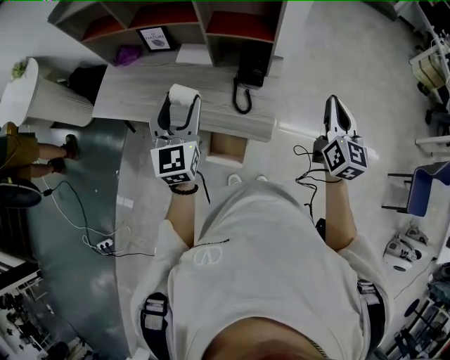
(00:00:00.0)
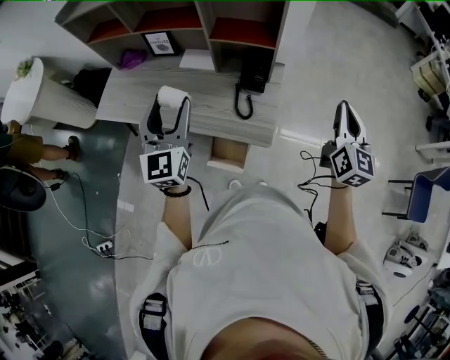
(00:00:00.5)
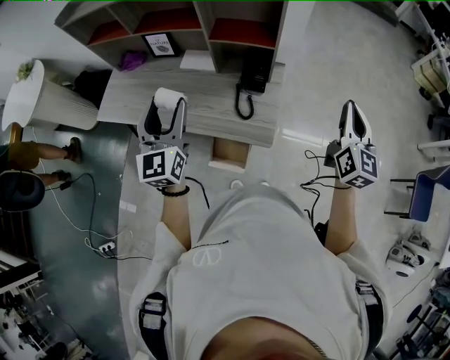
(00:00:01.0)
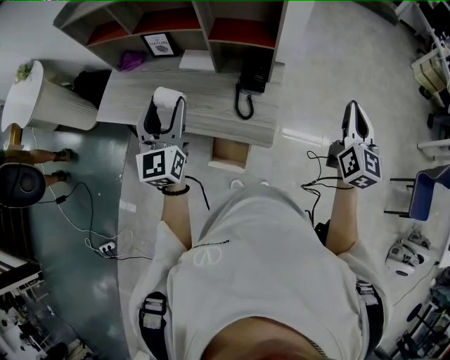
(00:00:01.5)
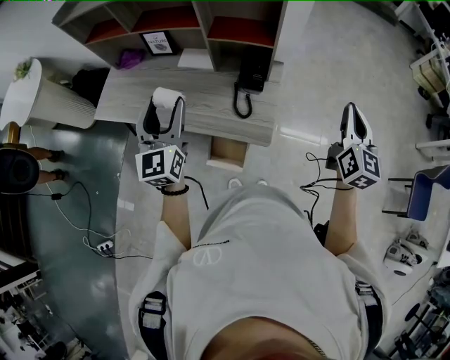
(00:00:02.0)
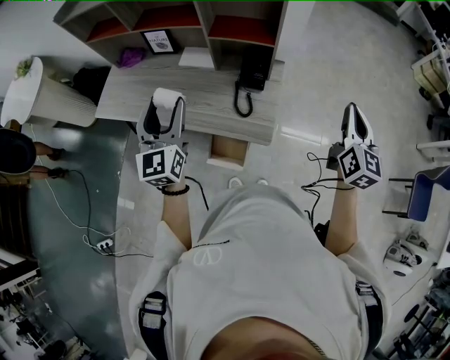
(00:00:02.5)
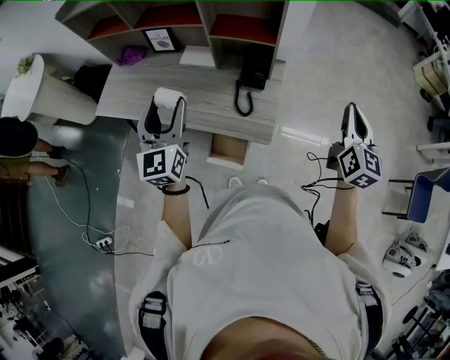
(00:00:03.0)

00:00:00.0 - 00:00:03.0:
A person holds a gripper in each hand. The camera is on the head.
00:00:00.0 - 00:00:01.5: The right gripper changes place by approximately 5 cm.
00:00:01.5 - 00:00:03.0: The grippers stay close to where they were, moving slightly.

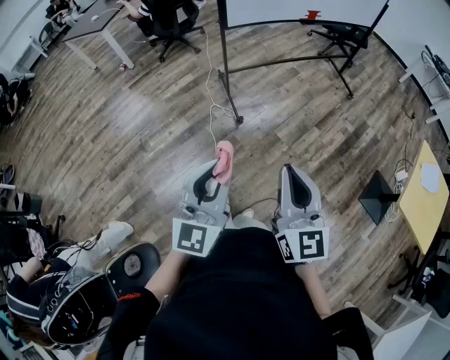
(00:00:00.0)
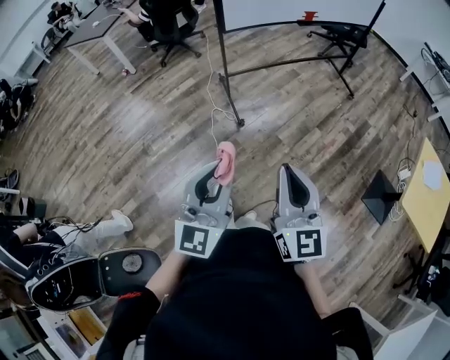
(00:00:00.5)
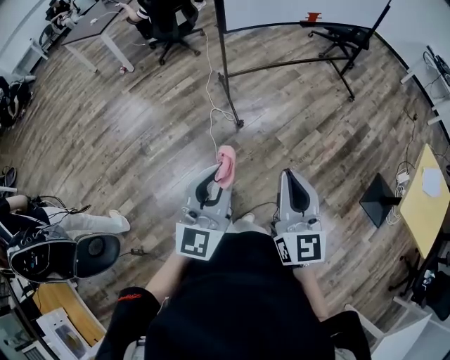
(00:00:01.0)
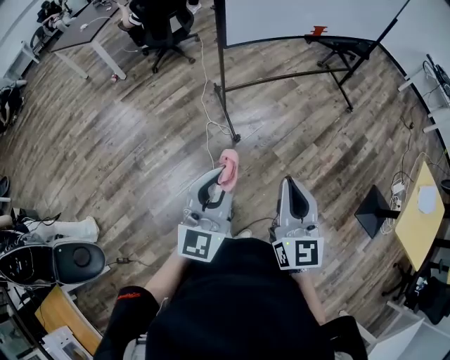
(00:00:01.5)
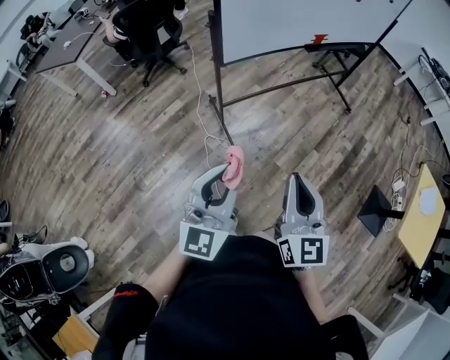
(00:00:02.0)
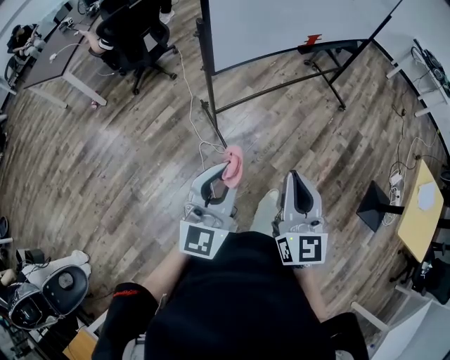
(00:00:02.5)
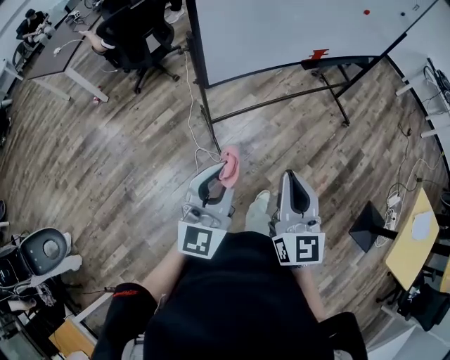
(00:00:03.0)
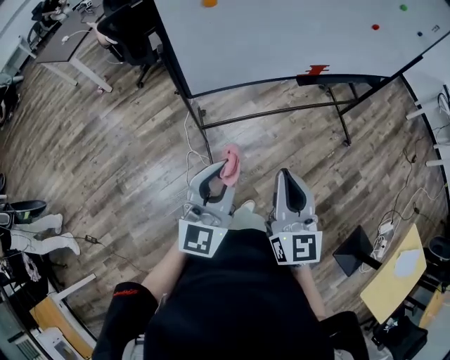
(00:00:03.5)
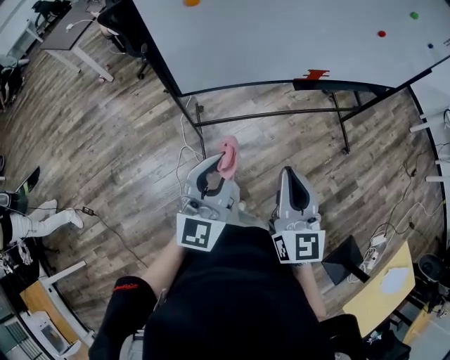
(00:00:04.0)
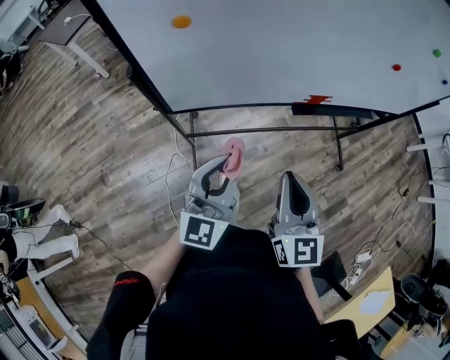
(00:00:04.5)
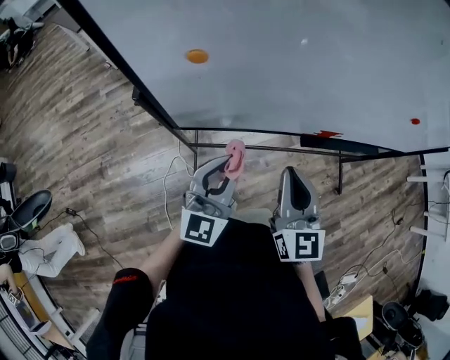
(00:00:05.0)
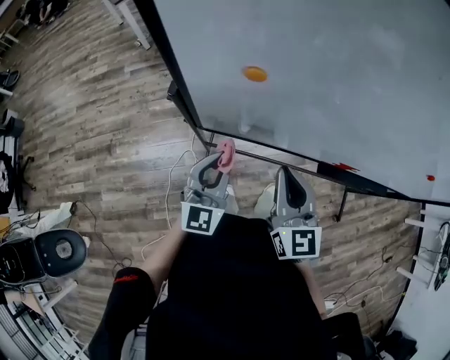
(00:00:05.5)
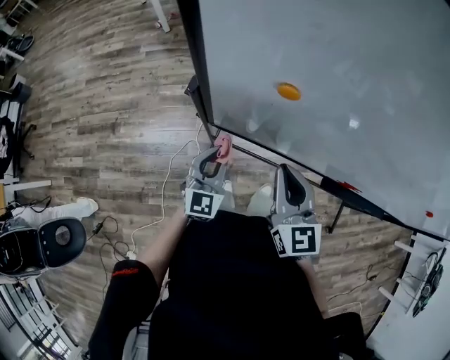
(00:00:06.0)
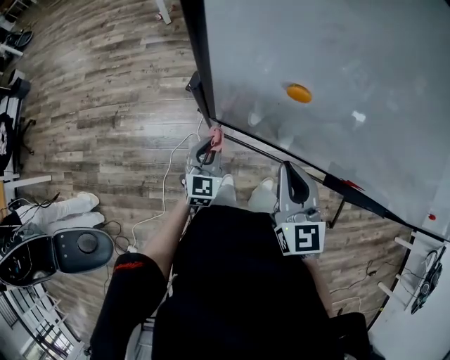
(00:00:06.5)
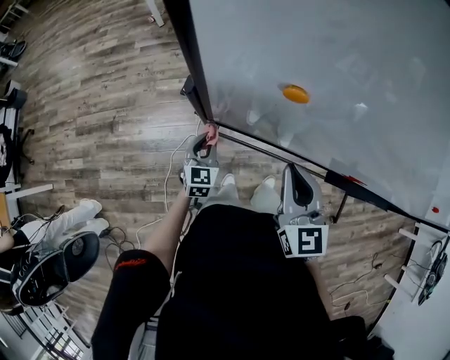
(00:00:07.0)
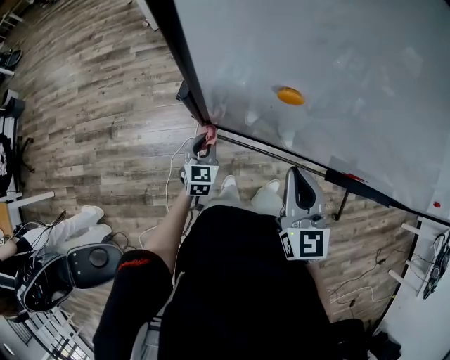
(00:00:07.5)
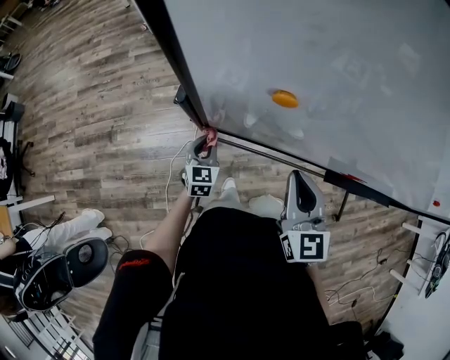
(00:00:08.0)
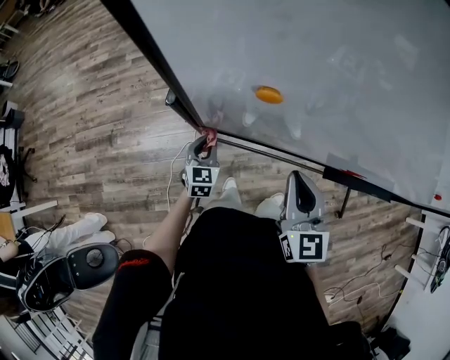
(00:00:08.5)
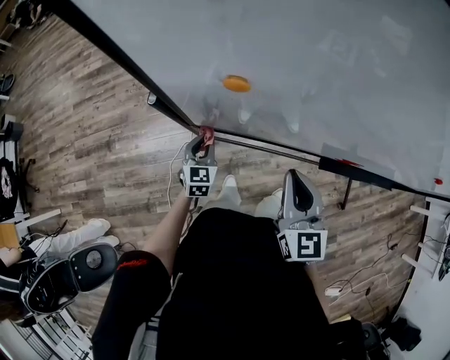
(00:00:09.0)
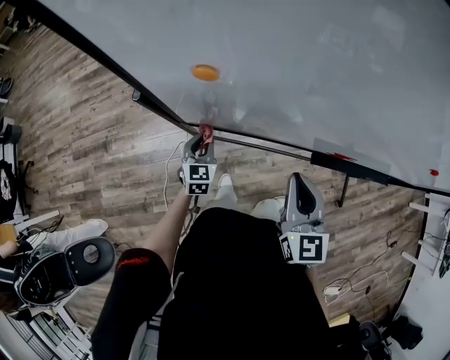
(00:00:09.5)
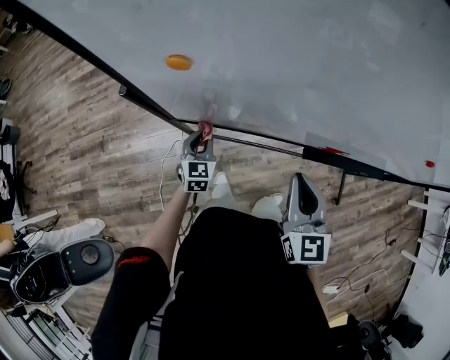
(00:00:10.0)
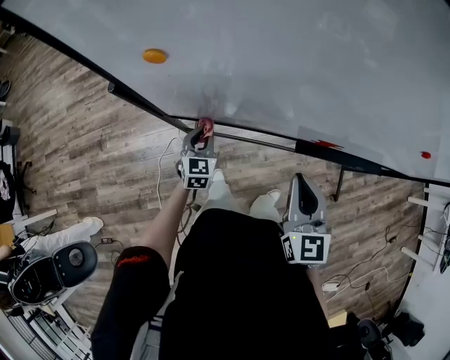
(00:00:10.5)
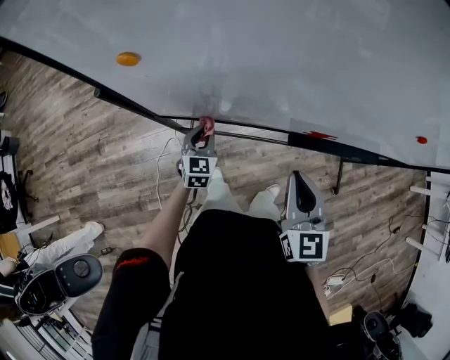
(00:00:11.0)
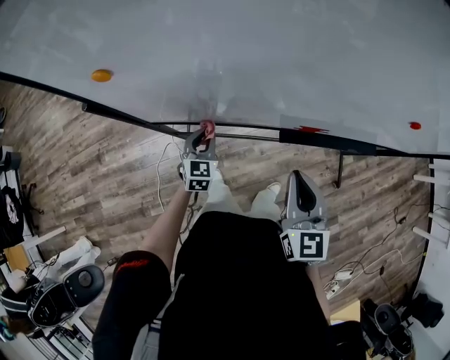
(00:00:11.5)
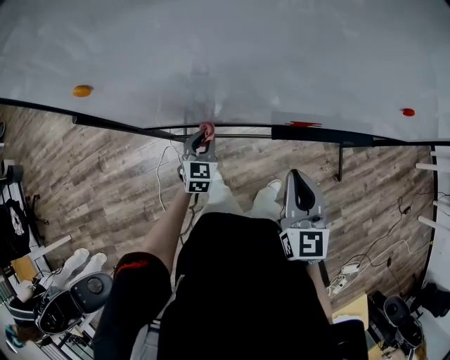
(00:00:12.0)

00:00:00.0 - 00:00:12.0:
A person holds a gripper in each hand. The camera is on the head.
00:00:00.0 - 00:00:02.0: The two grippers go about 30 cm forward.
00:00:02.0 - 00:00:04.0: Both grippers move forward and to the right, roughly 35 cm.
00:00:04.0 - 00:00:06.0: The left gripper moves approximately 30 cm, and turns by roughly 40 degrees, while the right gripper shifts by roughly 30 cm, and swivels some 40 degrees.
00:00:06.0 - 00:00:08.0: The left gripper travels downward by roughly 15 cm.
00:00:08.0 - 00:00:10.0: The left gripper heads to the right, covering approximately 10 cm. Meanwhile the right gripper heads to the right and backward, covering approximately 15 cm.
00:00:10.0 - 00:00:12.0: Both grippers move to the right, some 15 cm.

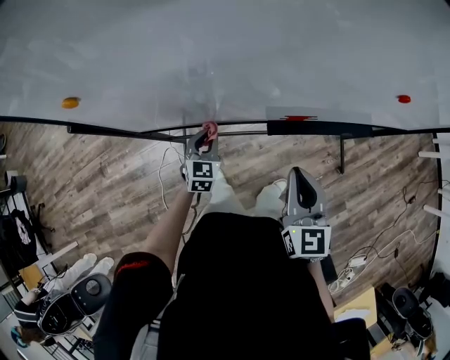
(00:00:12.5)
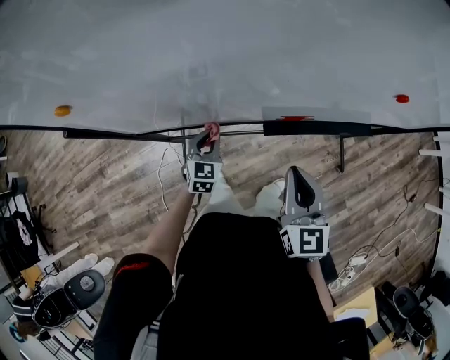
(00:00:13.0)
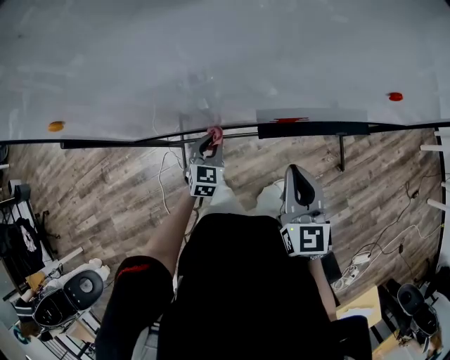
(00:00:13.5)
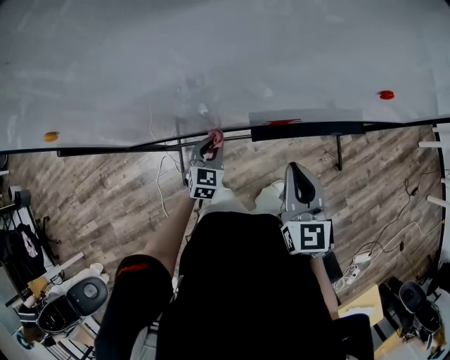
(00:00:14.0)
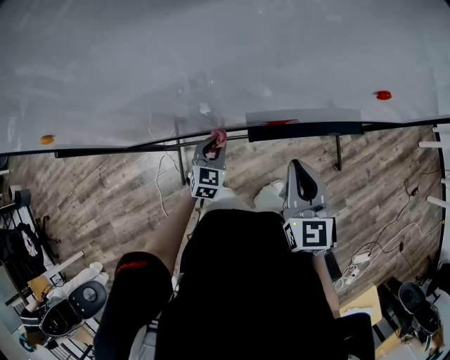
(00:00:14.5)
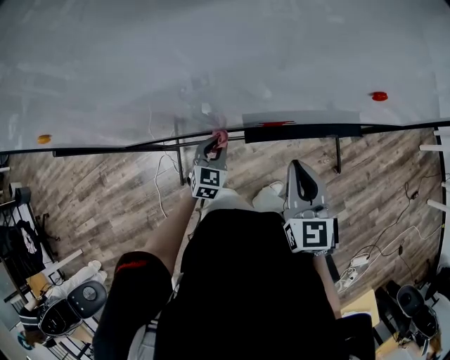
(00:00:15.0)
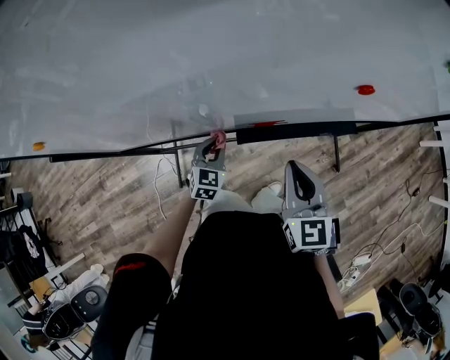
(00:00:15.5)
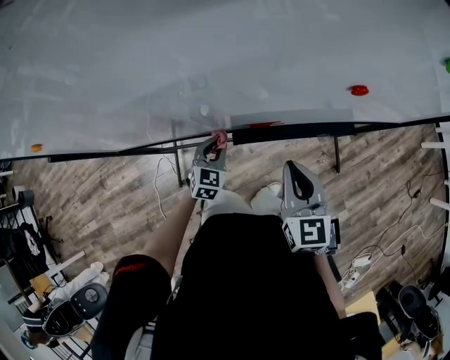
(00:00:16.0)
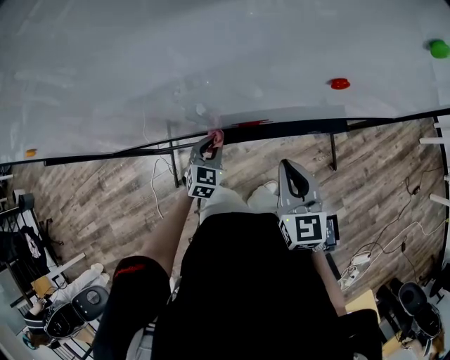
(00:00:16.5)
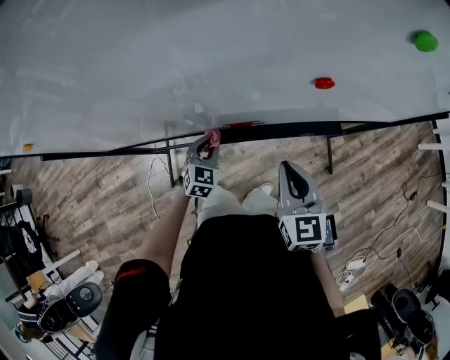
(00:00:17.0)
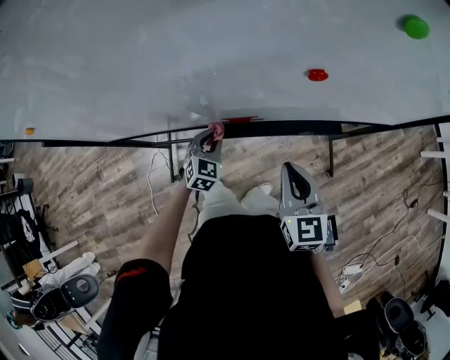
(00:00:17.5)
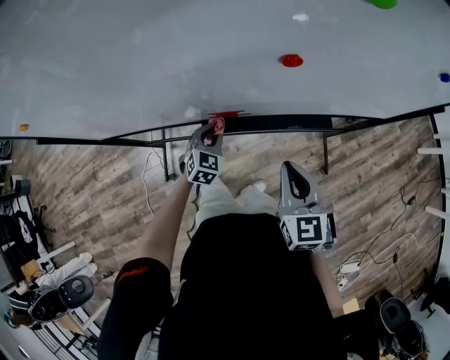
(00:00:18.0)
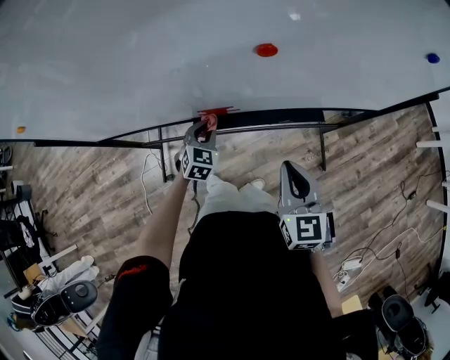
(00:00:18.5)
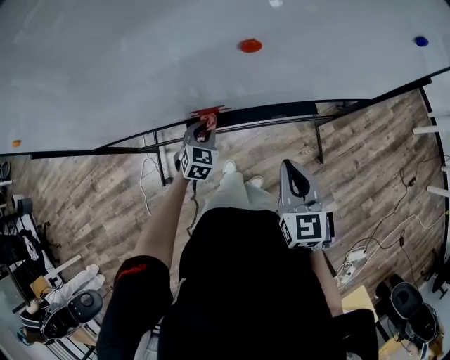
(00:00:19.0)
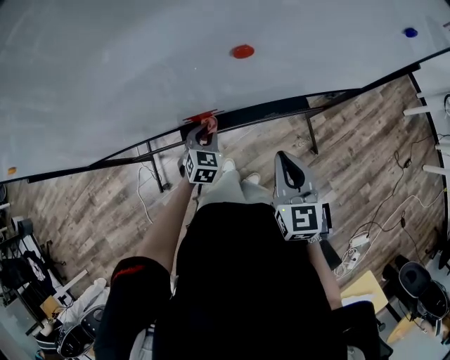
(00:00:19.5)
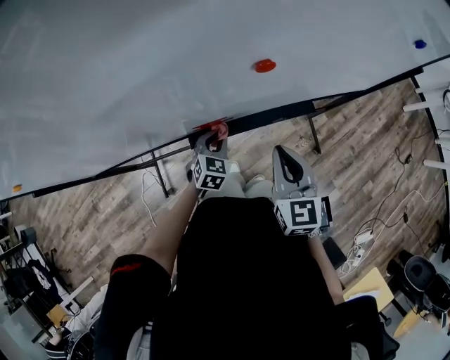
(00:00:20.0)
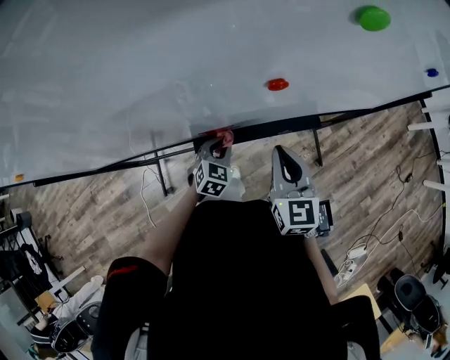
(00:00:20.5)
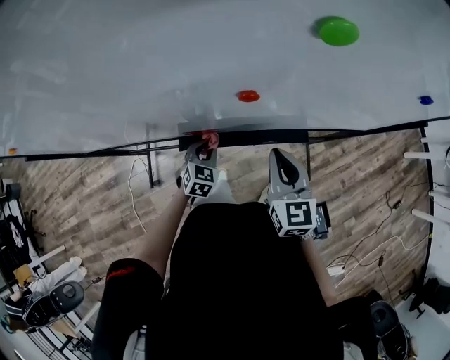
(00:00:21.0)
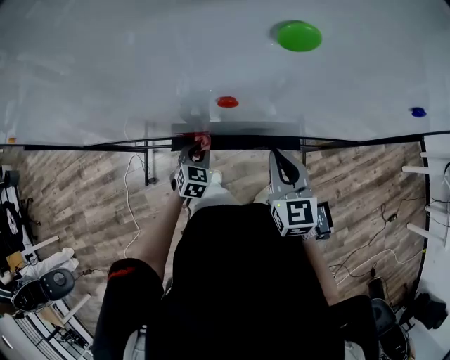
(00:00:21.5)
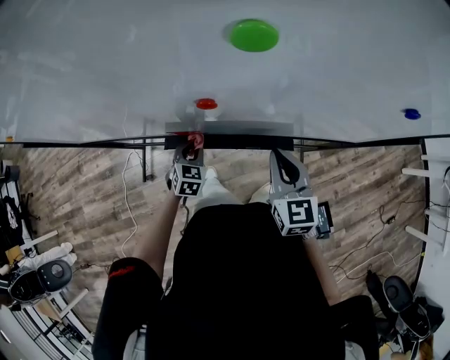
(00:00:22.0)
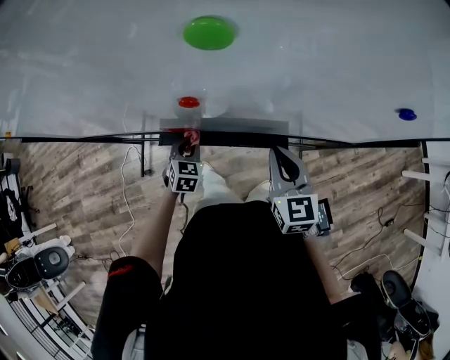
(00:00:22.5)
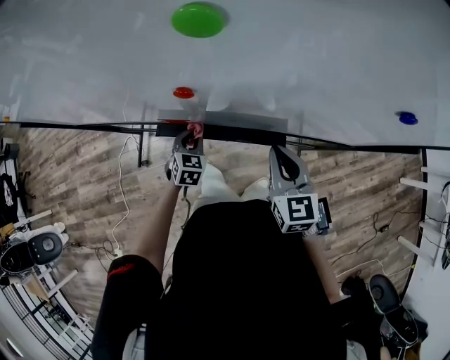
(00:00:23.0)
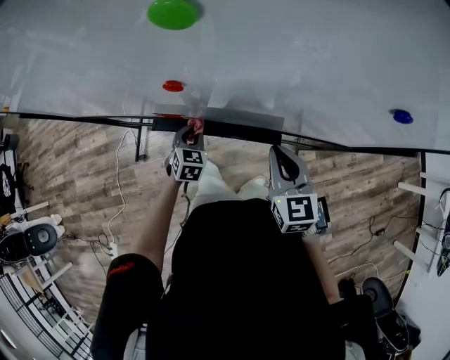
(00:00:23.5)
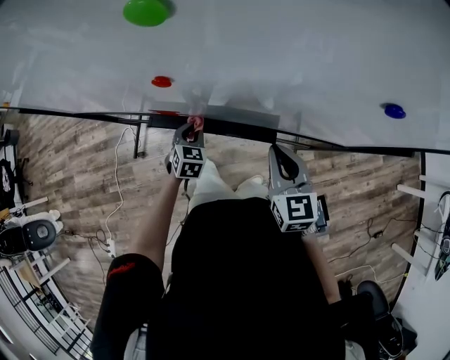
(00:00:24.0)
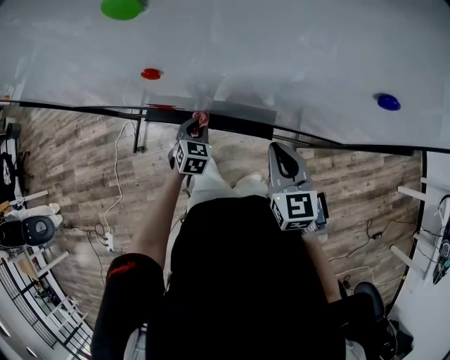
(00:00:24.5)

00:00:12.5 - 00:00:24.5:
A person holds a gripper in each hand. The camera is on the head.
00:00:12.5 - 00:00:14.5: The right gripper moves roughly 5 cm; the left gripper goes approximately 10 cm to the right.
00:00:14.5 - 00:00:16.5: Both grippers move to the right, roughly 10 cm.
00:00:16.5 - 00:00:18.5: The two grippers go roughly 10 cm to the right.
00:00:18.5 - 00:00:20.5: The left gripper goes approximately 5 cm to the right; the right gripper is displaced forward by roughly 10 cm.
00:00:20.5 - 00:00:22.5: The left gripper changes its angle by some 30 degrees. Meanwhile the right gripper is displaced to the right by some 15 cm.
00:00:22.5 - 00:00:24.5: Both grippers travel together to the right, approximately 5 cm.
